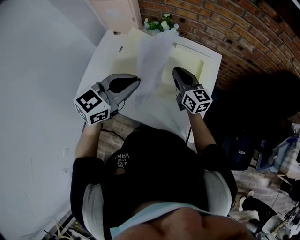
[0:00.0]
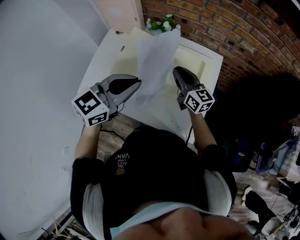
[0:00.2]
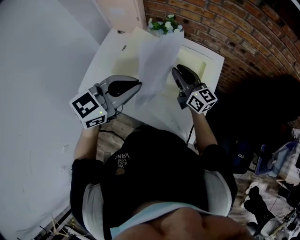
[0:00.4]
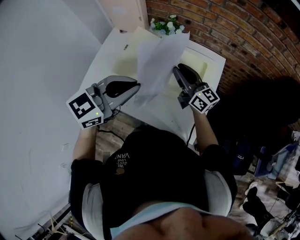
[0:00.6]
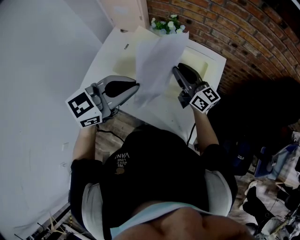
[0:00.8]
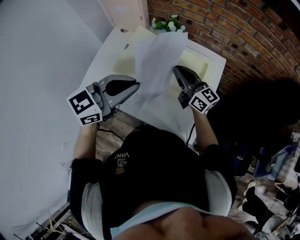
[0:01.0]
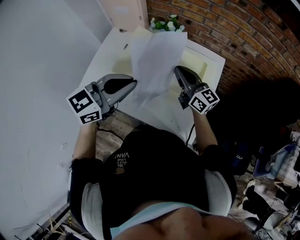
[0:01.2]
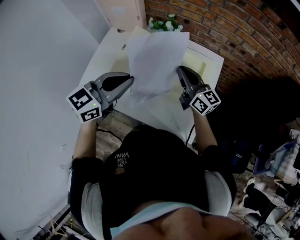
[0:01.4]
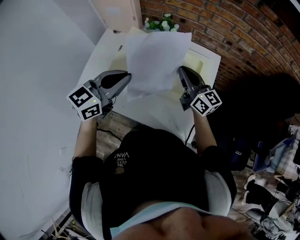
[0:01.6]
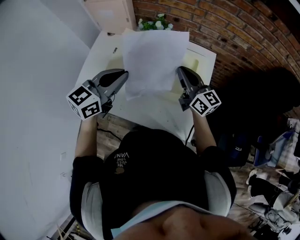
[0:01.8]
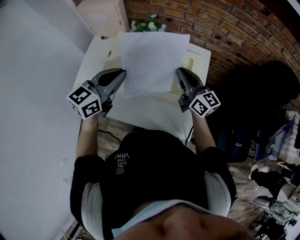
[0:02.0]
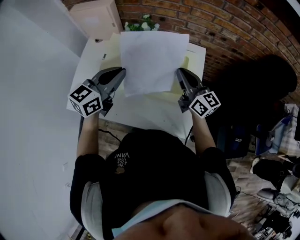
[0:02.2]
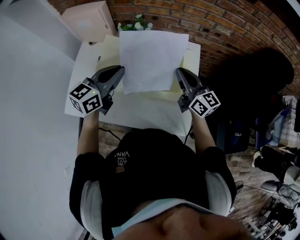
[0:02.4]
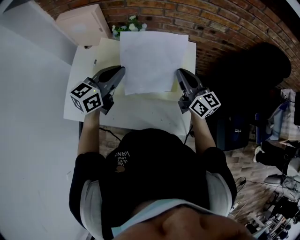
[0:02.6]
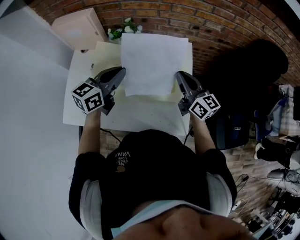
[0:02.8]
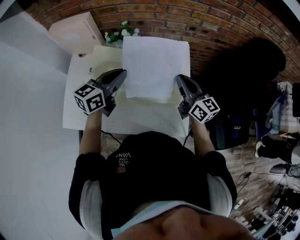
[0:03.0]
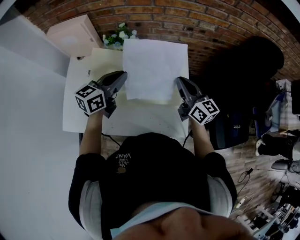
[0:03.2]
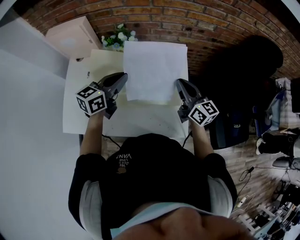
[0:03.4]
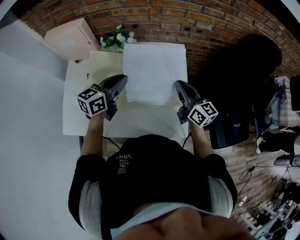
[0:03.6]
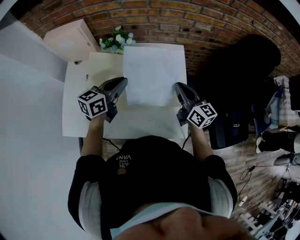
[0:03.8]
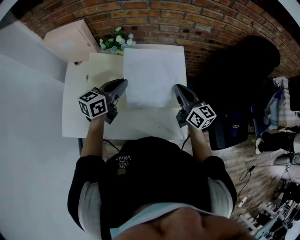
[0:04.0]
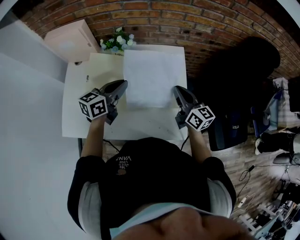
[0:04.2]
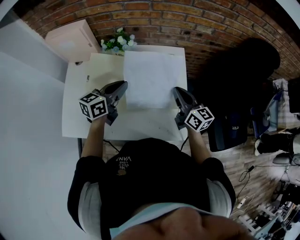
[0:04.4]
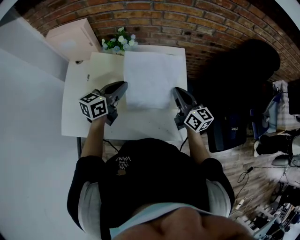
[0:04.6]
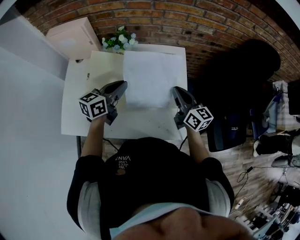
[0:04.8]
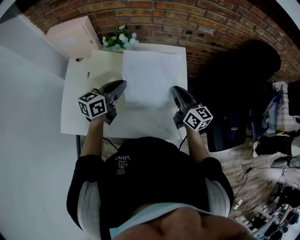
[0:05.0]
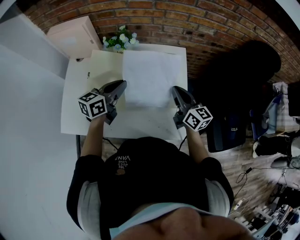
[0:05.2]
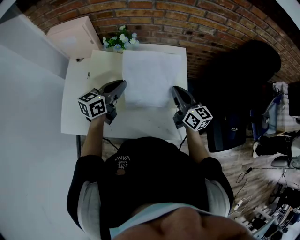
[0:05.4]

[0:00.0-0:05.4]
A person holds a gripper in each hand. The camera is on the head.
0:01.4 to 0:02.8: The right gripper shifts some 10 cm to the right, and changes its angle by roughly 20 degrees; the left gripper moves forward and downward, some 15 cm.
0:02.8 to 0:04.0: The left gripper moves some 5 cm.
0:04.0 to 0:05.4: The grippers make only small movements.

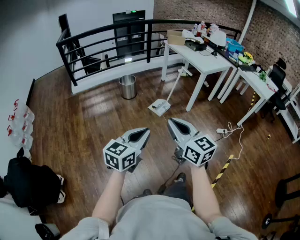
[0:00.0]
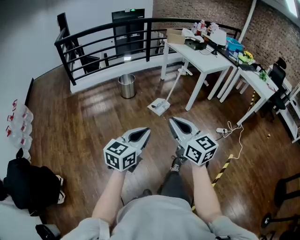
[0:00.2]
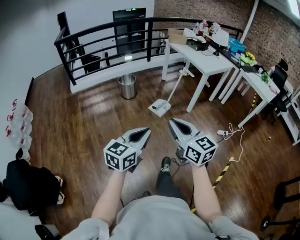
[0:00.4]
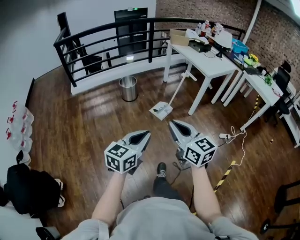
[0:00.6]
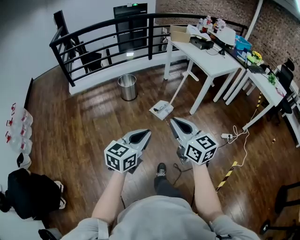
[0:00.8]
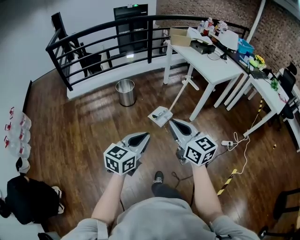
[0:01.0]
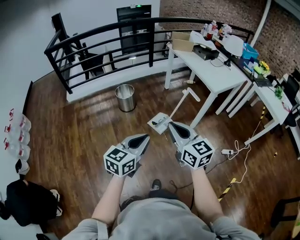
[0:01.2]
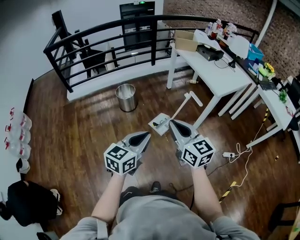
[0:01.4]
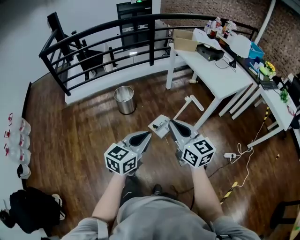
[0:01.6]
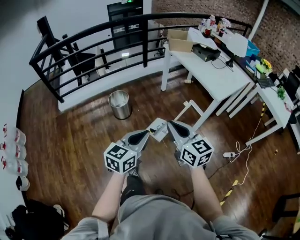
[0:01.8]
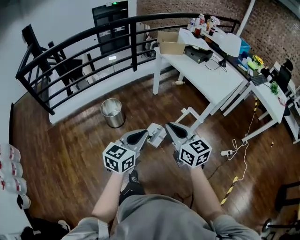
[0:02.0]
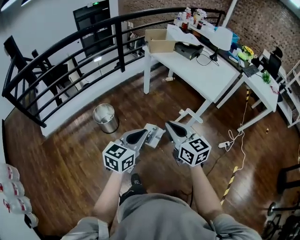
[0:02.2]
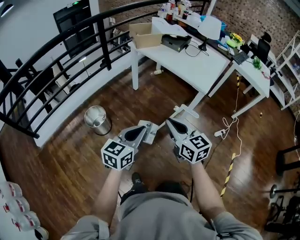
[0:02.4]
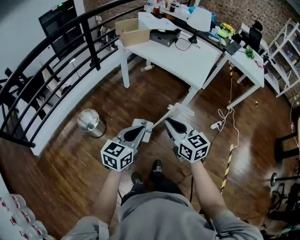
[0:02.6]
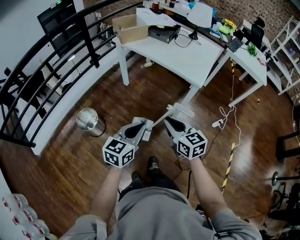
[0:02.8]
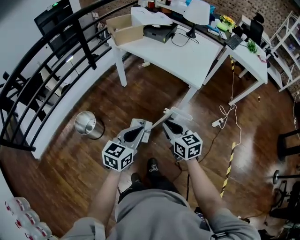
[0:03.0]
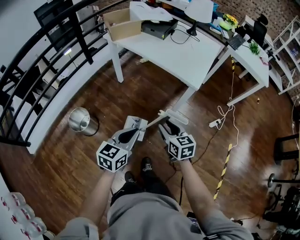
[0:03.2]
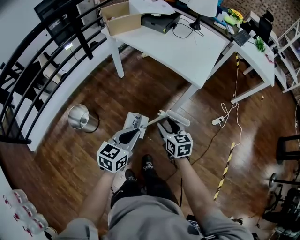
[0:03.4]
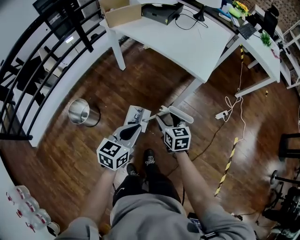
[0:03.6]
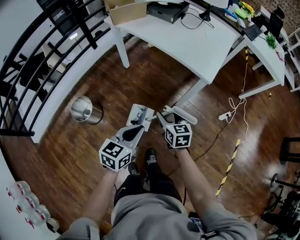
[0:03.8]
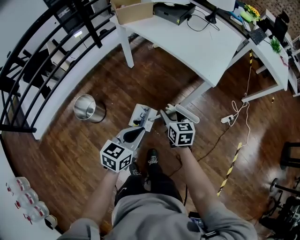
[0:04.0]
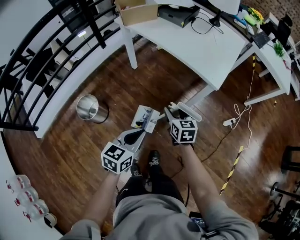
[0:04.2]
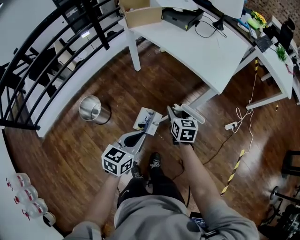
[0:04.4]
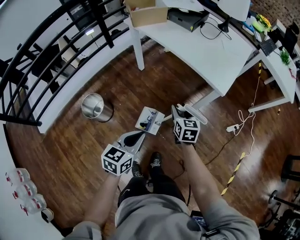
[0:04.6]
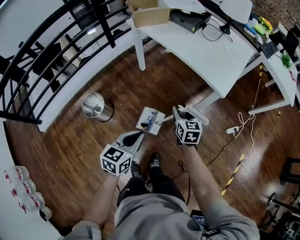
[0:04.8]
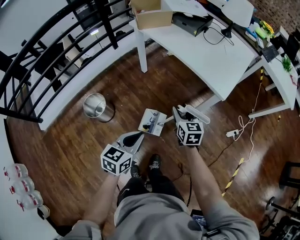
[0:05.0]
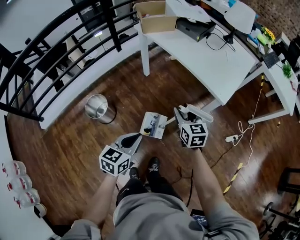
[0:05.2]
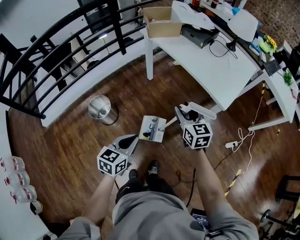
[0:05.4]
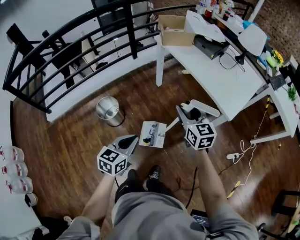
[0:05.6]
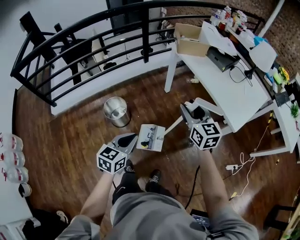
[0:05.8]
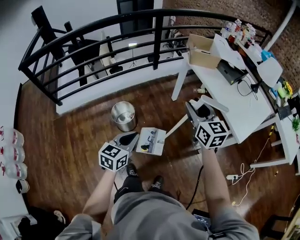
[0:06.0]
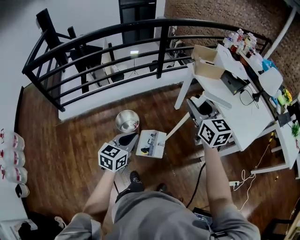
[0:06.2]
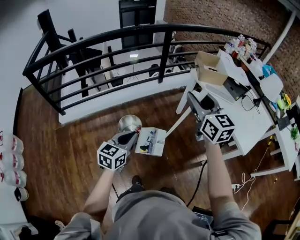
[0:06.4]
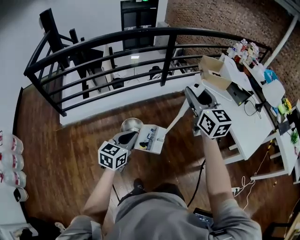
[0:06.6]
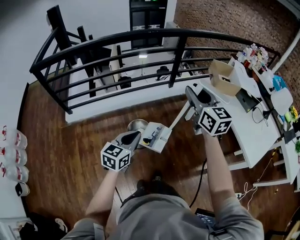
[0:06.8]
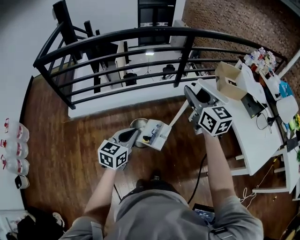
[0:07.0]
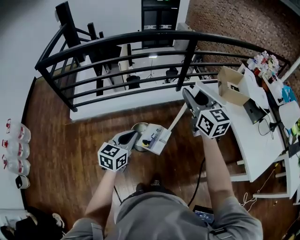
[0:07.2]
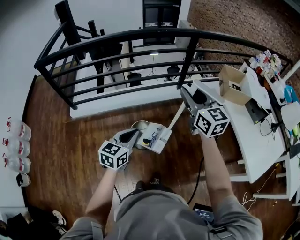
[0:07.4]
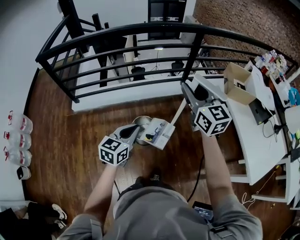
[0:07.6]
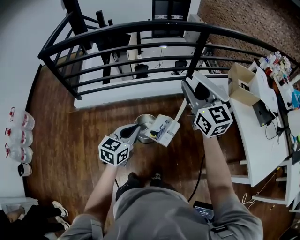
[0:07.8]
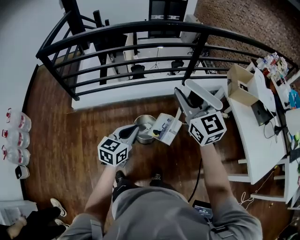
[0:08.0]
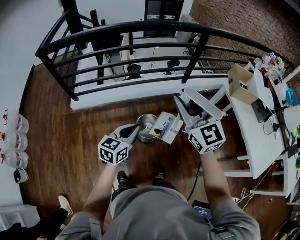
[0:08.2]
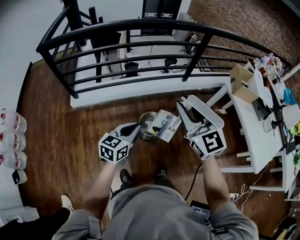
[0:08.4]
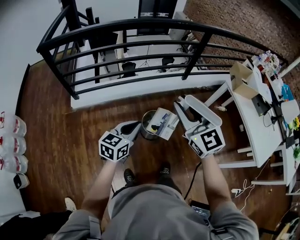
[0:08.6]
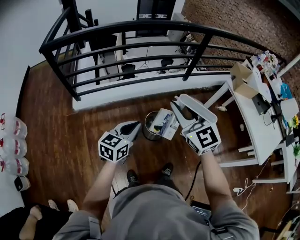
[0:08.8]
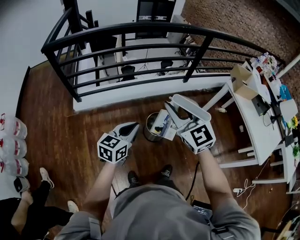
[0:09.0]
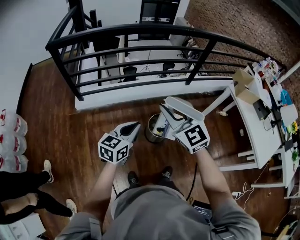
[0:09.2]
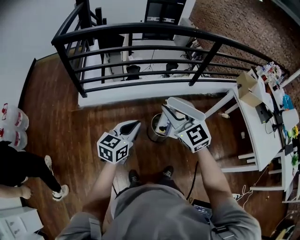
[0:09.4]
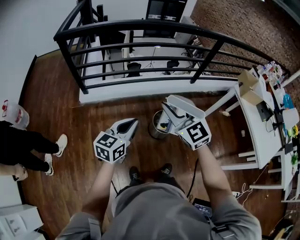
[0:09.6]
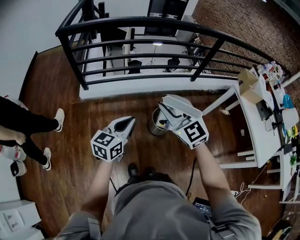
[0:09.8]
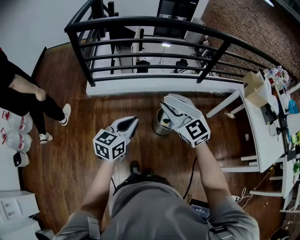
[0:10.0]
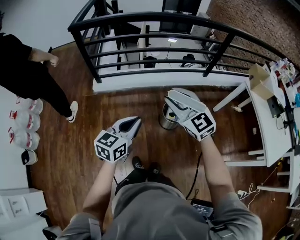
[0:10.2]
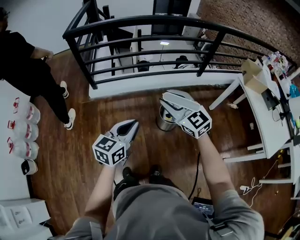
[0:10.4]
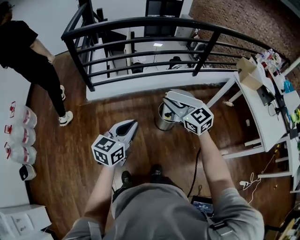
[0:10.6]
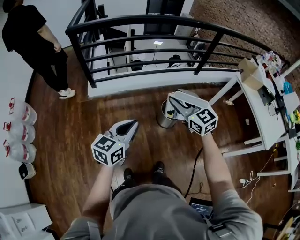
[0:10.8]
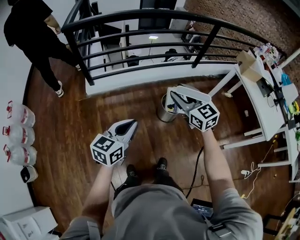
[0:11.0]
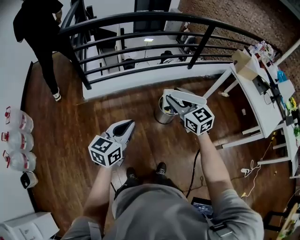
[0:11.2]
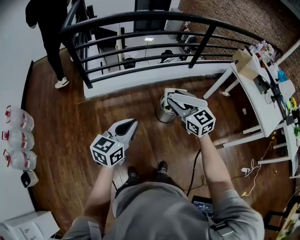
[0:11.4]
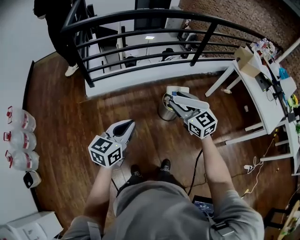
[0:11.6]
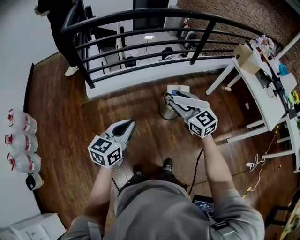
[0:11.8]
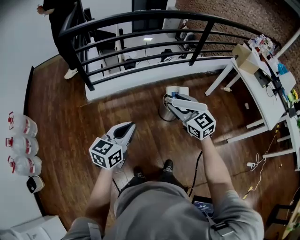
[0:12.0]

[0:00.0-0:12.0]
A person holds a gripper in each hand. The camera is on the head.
0:00.0 to 0:01.6: Both grippers are carried forward, approximately 50 cm.
0:01.6 to 0:03.0: The left gripper ends up roughly 35 cm from where it was, and changes its angle by approximately 30 degrees; the right gripper changes place by approximately 30 cm, and turns by some 40 degrees.
0:03.0 to 0:04.4: The right gripper travels forward and downward by approximately 20 cm, and opens up. Meanwhile the left gripper is displaced downward by some 10 cm.
0:04.4 to 0:06.0: The left gripper ends up about 25 cm from where it was, and rotates roughly 30 degrees. The right gripper travels upward by approximately 25 cm, and turns by about 40 degrees.
0:06.0 to 0:07.6: The left gripper heads forward and to the left, covering some 25 cm. Meanwhile the right gripper moves to the left and forward, roughly 30 cm, and swivels some 20 degrees.
0:07.6 to 0:09.0: The right gripper goes about 35 cm to the left and backward, and turns by approximately 20 degrees. The left gripper shifts approximately 25 cm to the left.
0:09.0 to 0:10.4: The right gripper moves to the left, backward and downward, roughly 10 cm, while the left gripper travels backward and to the left by about 15 cm.
0:10.4 to 0:12.0: The left gripper goes roughly 15 cm to the left, while the right gripper shifts about 10 cm to the left and backward.

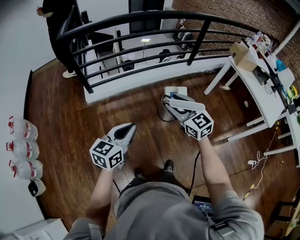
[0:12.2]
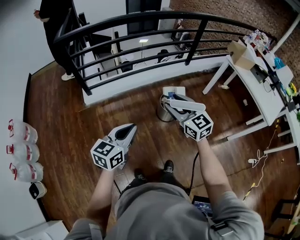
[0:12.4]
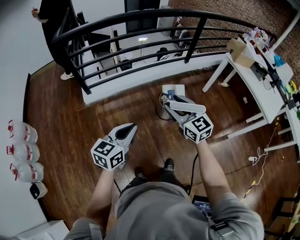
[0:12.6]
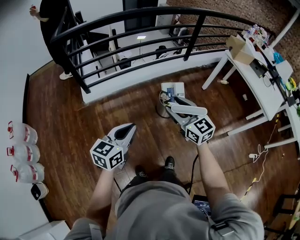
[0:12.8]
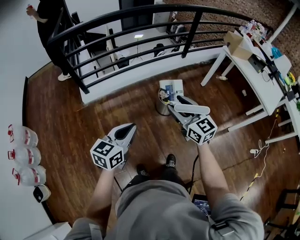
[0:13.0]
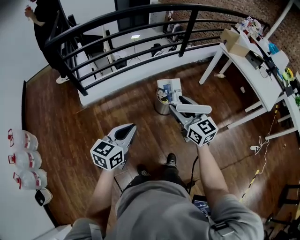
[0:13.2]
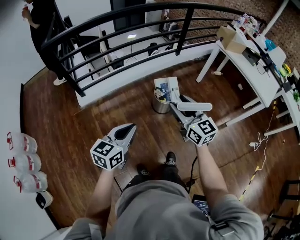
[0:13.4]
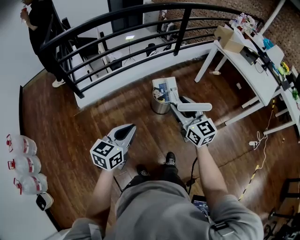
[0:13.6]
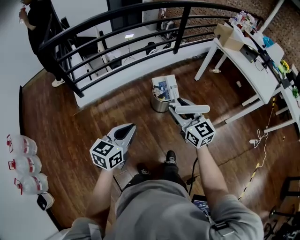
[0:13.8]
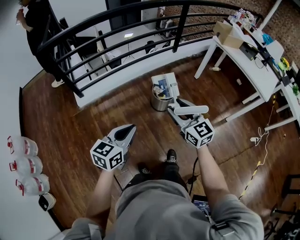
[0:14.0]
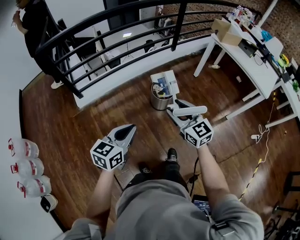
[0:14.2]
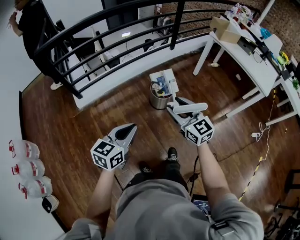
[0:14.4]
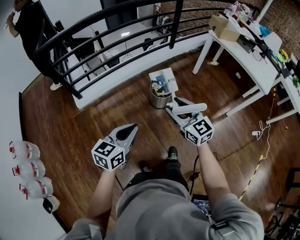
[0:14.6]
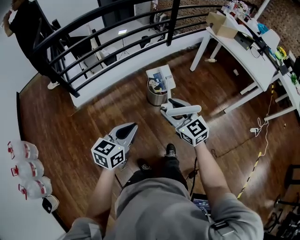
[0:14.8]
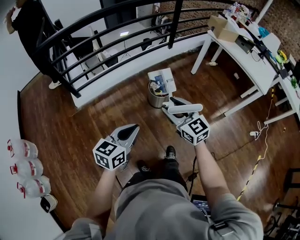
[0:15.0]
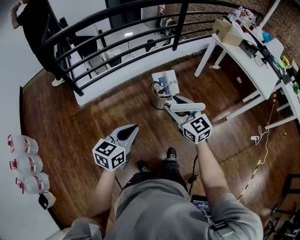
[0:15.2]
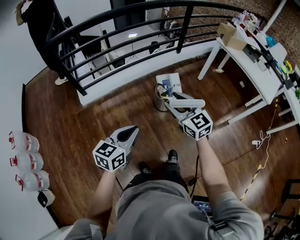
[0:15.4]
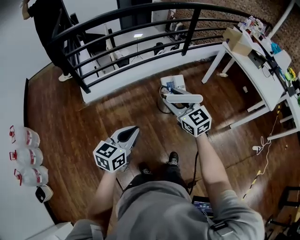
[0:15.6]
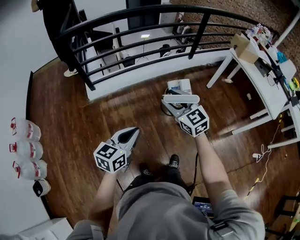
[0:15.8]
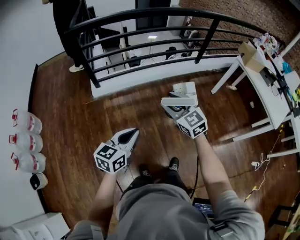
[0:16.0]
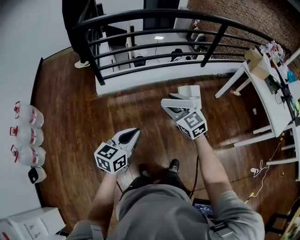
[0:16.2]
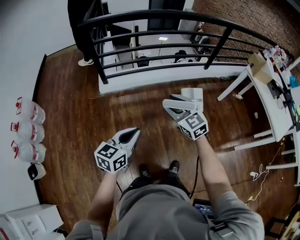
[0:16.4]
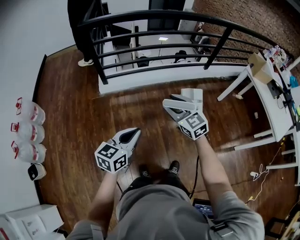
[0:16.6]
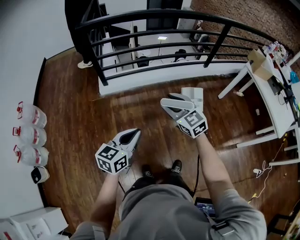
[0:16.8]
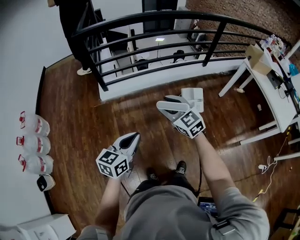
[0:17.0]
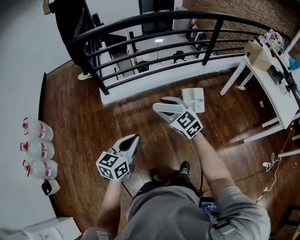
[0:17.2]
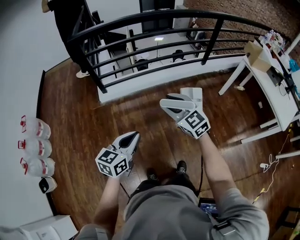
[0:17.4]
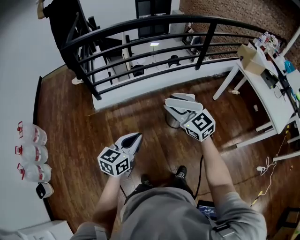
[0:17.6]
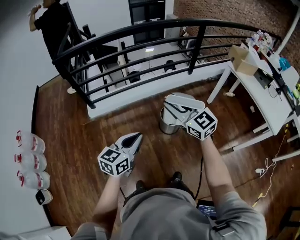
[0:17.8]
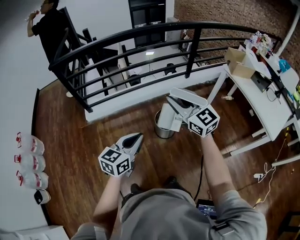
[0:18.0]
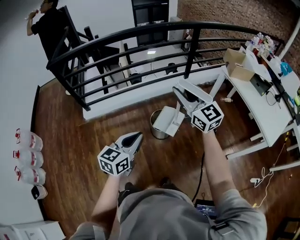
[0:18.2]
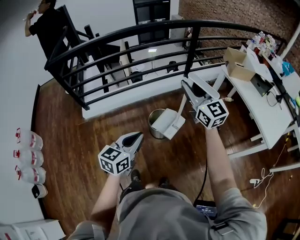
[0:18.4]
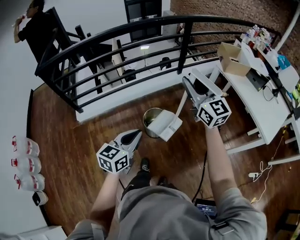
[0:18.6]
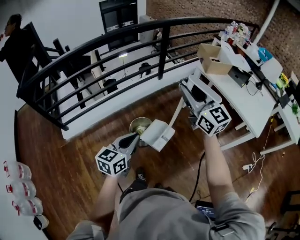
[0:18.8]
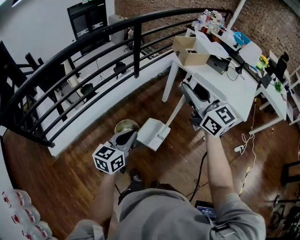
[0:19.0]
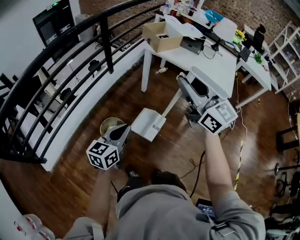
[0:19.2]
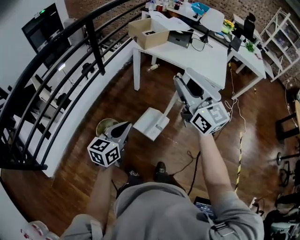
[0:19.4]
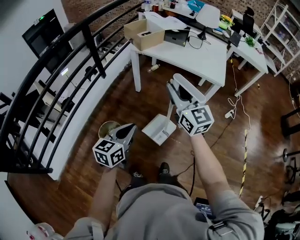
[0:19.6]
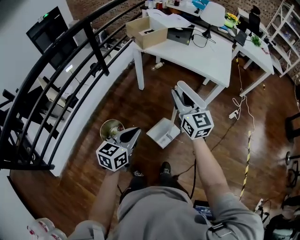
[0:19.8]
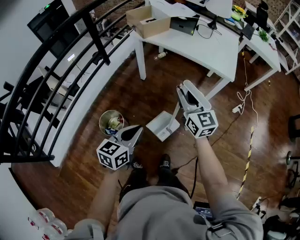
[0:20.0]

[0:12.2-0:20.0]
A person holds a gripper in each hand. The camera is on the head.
0:12.2 to 0:13.8: The right gripper shifts some 10 cm to the right and backward.
0:13.8 to 0:15.4: The grippers stay close to where they were, moving slightly.
0:15.4 to 0:16.8: The grippers both shift to the left by roughly 15 cm. The right gripper turns by about 20 degrees.
0:16.8 to 0:18.4: Both grippers move to the right, approximately 40 cm. The right gripper turns by roughly 30 degrees.
0:18.4 to 0:20.0: The right gripper shifts by approximately 35 cm, and rotates some 50 degrees. Meanwhile the left gripper ends up some 30 cm from where it was, and turns by roughly 40 degrees.
